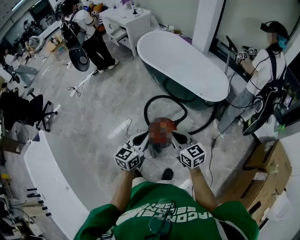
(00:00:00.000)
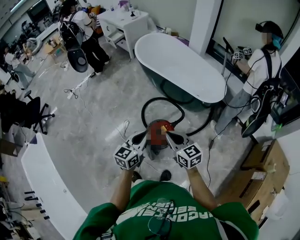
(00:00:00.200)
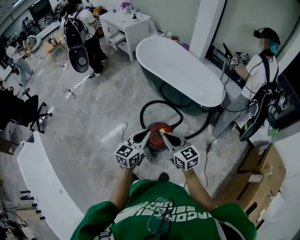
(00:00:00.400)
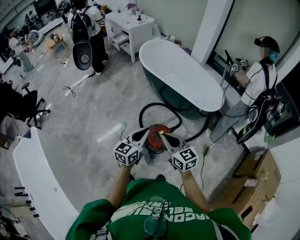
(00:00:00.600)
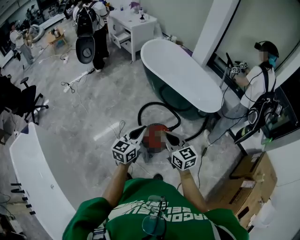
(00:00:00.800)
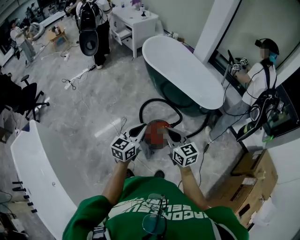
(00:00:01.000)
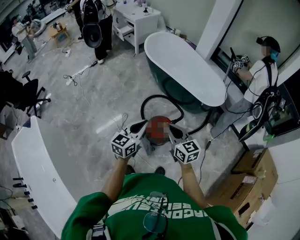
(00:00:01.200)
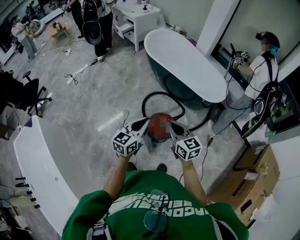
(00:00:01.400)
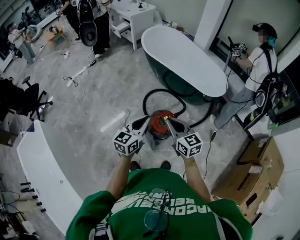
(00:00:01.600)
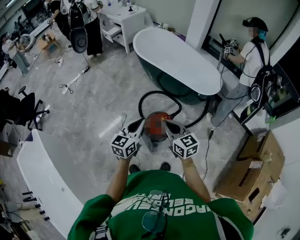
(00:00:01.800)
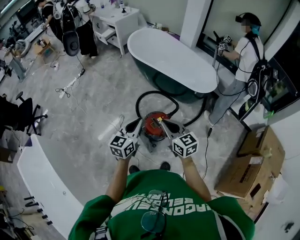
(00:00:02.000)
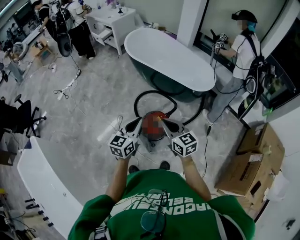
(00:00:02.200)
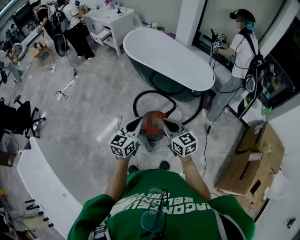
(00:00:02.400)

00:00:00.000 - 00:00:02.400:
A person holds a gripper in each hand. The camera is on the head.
00:00:00.000 - 00:00:01.200: The two grippers go some 10 cm to the left.
00:00:01.200 - 00:00:02.400: The grippers stay close to where they were, moving slightly.

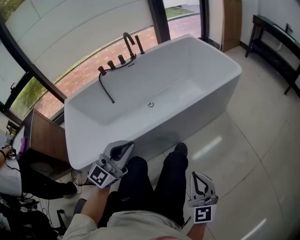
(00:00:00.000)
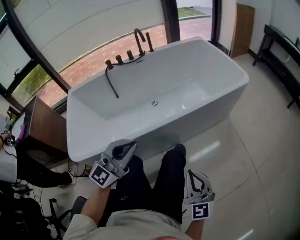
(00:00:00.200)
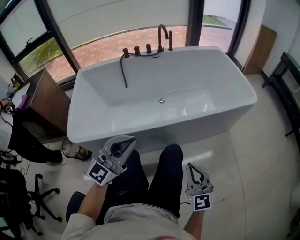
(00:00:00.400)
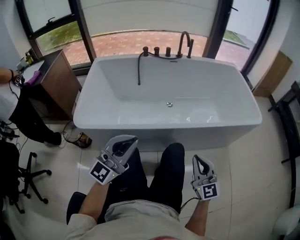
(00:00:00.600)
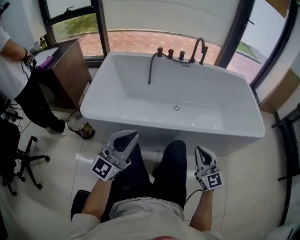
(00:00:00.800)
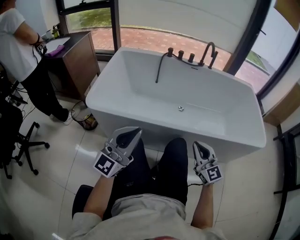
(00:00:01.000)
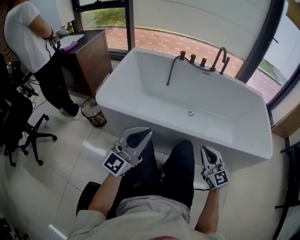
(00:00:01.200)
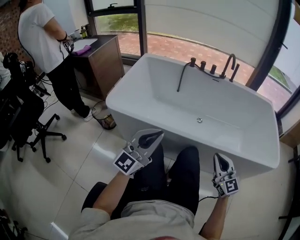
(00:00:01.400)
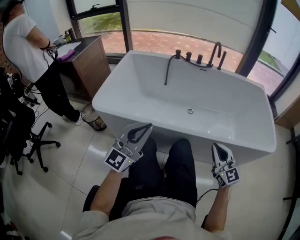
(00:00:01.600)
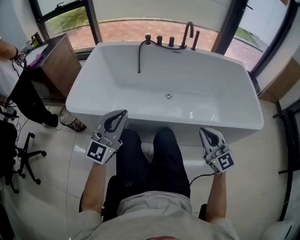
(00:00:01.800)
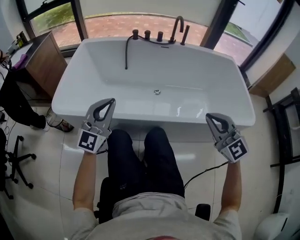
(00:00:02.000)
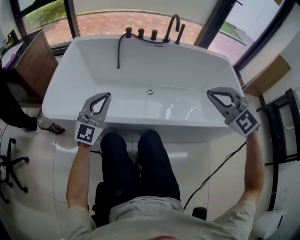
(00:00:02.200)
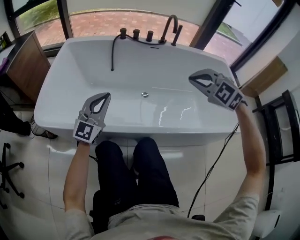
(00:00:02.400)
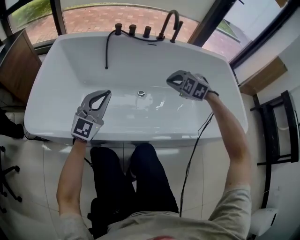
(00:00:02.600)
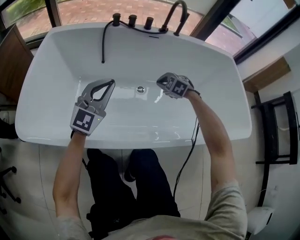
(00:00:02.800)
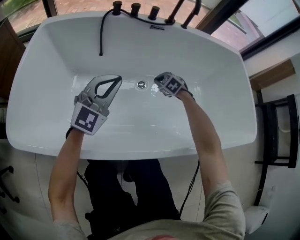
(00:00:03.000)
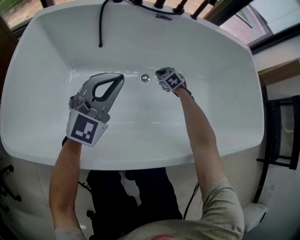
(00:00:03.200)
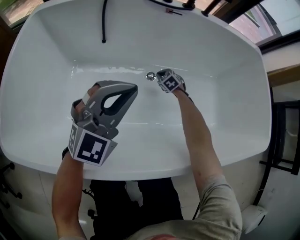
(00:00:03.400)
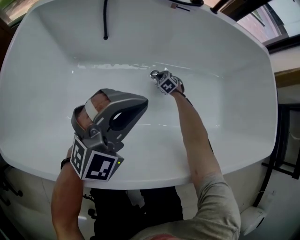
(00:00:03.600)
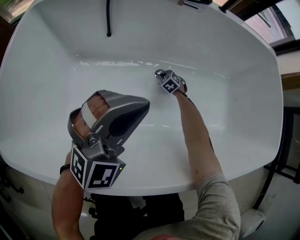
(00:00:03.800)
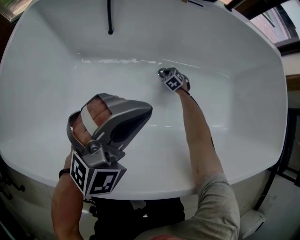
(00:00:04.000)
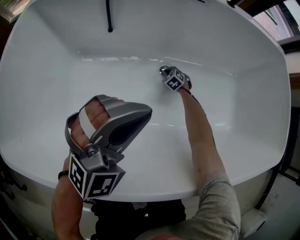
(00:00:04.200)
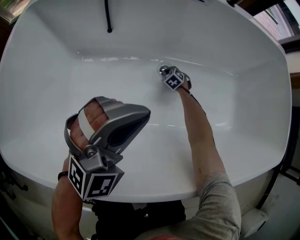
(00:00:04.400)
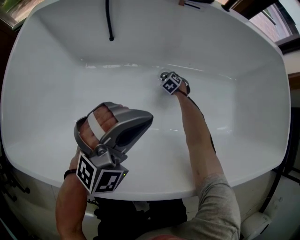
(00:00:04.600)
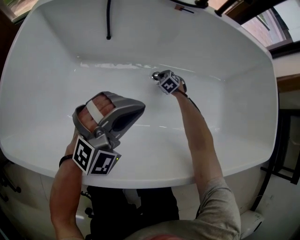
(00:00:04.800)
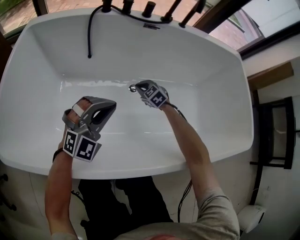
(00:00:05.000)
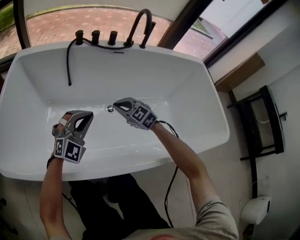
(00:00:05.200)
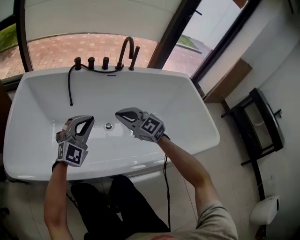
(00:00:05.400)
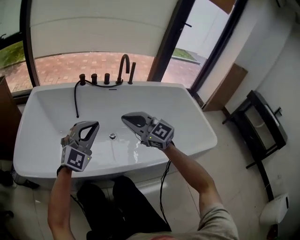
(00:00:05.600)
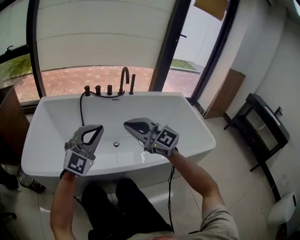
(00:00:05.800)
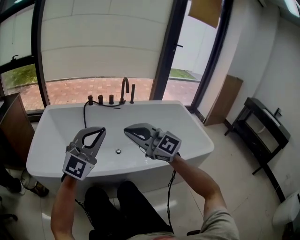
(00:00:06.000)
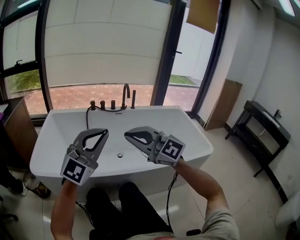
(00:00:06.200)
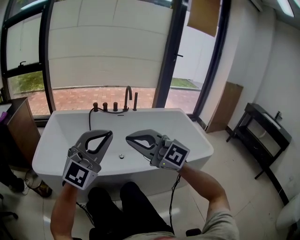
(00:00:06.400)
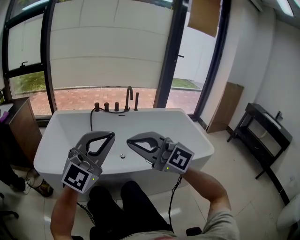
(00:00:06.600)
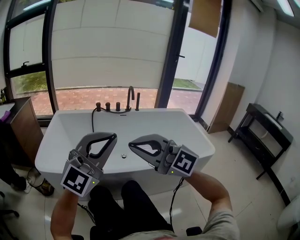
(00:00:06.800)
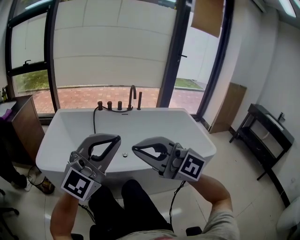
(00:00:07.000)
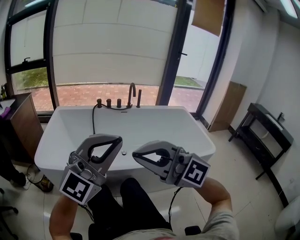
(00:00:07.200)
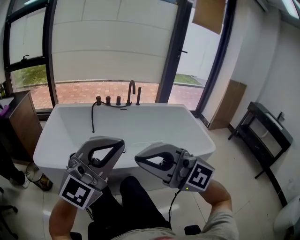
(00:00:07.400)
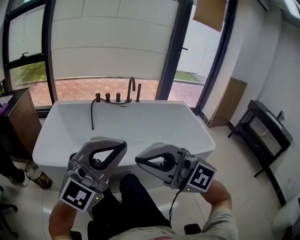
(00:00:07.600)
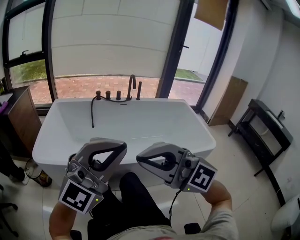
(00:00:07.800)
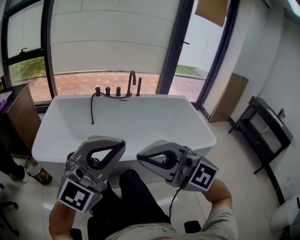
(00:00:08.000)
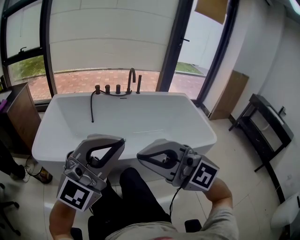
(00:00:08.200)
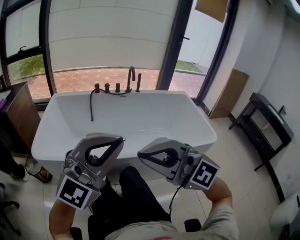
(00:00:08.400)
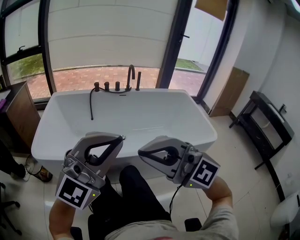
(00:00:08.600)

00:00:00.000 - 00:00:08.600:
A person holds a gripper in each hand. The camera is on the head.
00:00:00.000 - 00:00:01.400: The right gripper shifts by some 25 cm, and changes its angle by some 50 degrees, while the left gripper rotates about 40 degrees.
00:00:01.400 - 00:00:02.800: The left gripper heads forward, covering about 35 cm. Meanwhile the right gripper heads forward and downward, covering approximately 50 cm, and tips its fingers downward by about 60 degrees.
00:00:02.800 - 00:00:04.400: The left gripper travels downward and to the right by approximately 10 cm, and rotates some 30 degrees. Meanwhile the right gripper is displaced downward by roughly 40 cm.
00:00:04.400 - 00:00:05.800: The left gripper travels upward and backward by approximately 30 cm, and swivels roughly 20 degrees, while the right gripper is displaced upward and backward by some 80 cm, and tilts its fingers some 60 degrees upward.
00:00:05.800 - 00:00:07.200: The left gripper moves some 30 cm; the right gripper moves roughly 30 cm, and turns by roughly 30 degrees.
00:00:07.200 - 00:00:08.600: There are only small adjustments of the grippers.

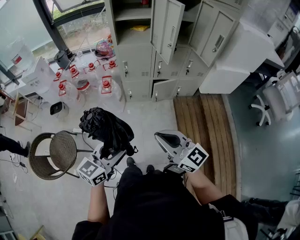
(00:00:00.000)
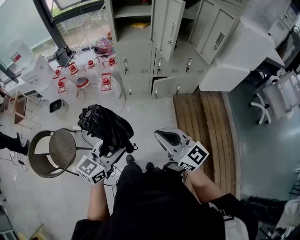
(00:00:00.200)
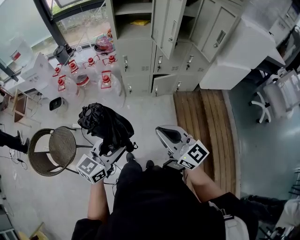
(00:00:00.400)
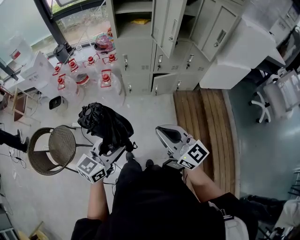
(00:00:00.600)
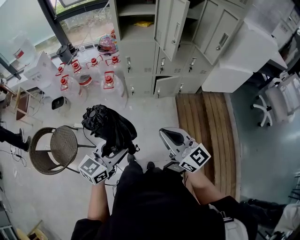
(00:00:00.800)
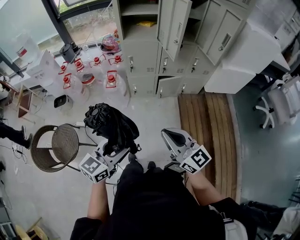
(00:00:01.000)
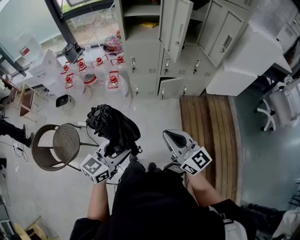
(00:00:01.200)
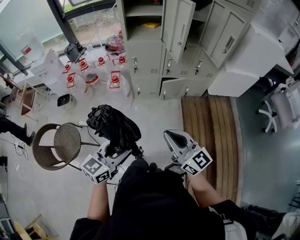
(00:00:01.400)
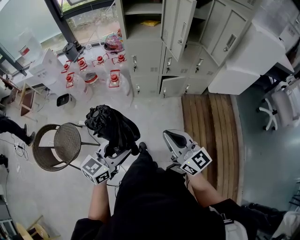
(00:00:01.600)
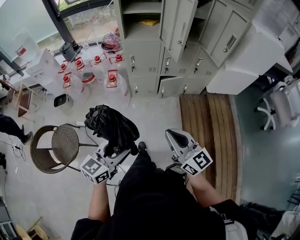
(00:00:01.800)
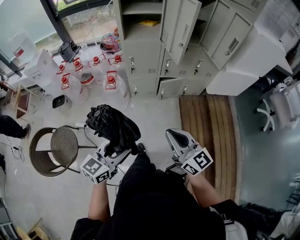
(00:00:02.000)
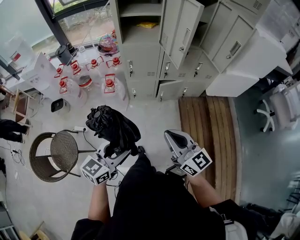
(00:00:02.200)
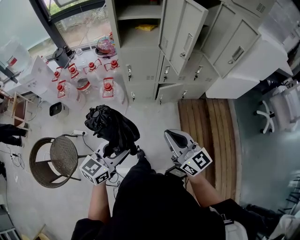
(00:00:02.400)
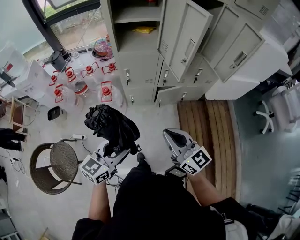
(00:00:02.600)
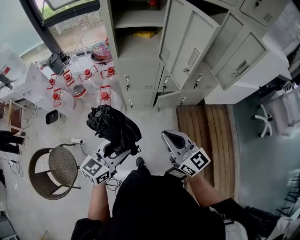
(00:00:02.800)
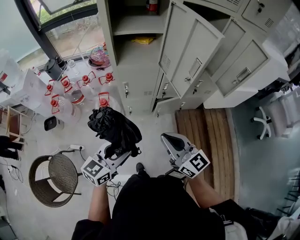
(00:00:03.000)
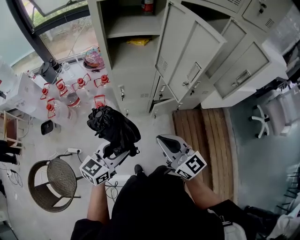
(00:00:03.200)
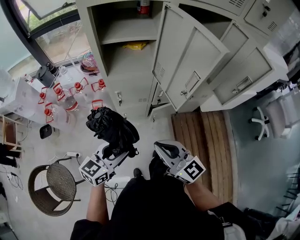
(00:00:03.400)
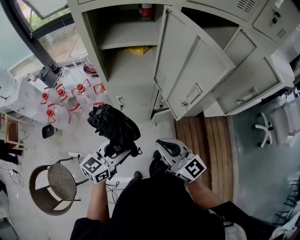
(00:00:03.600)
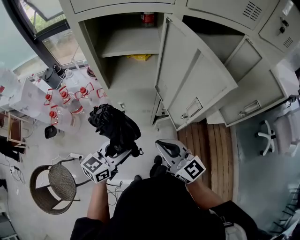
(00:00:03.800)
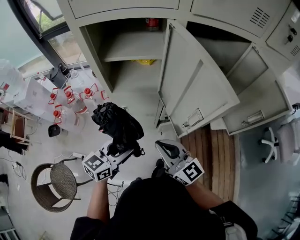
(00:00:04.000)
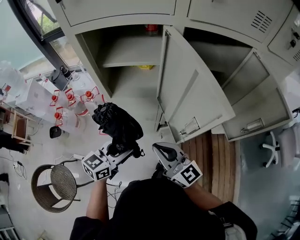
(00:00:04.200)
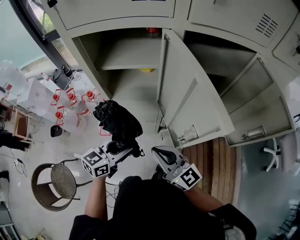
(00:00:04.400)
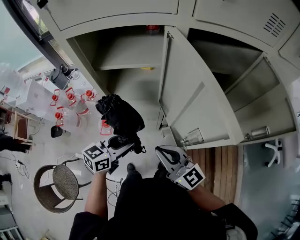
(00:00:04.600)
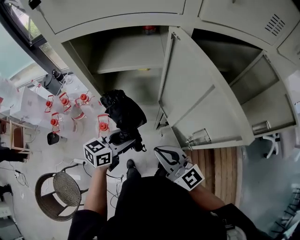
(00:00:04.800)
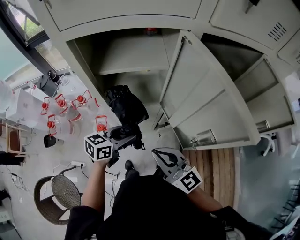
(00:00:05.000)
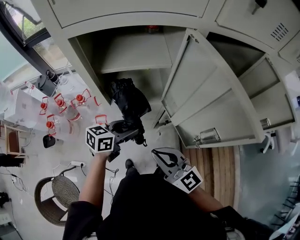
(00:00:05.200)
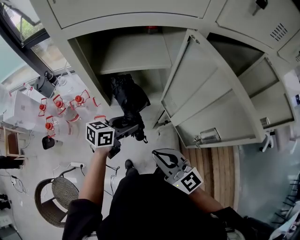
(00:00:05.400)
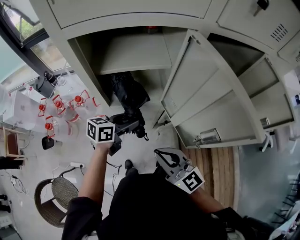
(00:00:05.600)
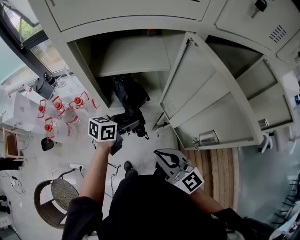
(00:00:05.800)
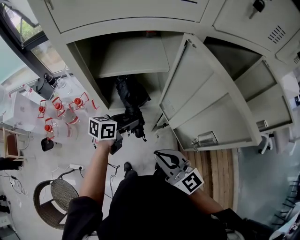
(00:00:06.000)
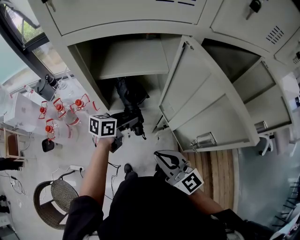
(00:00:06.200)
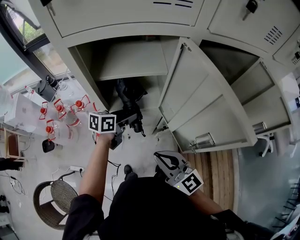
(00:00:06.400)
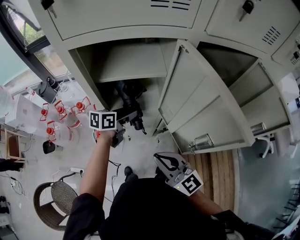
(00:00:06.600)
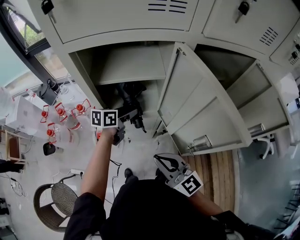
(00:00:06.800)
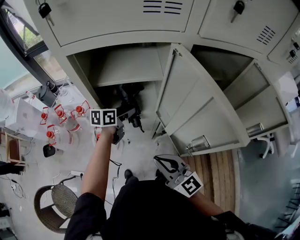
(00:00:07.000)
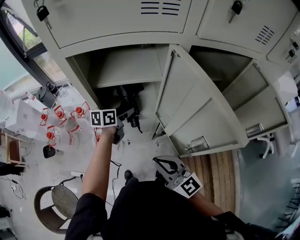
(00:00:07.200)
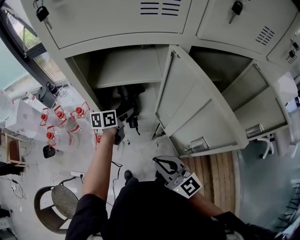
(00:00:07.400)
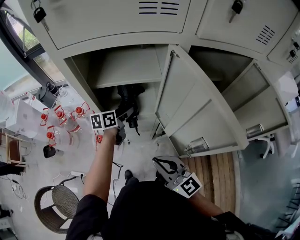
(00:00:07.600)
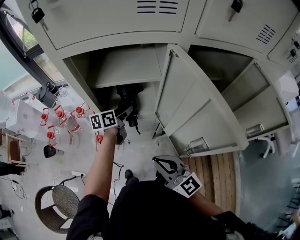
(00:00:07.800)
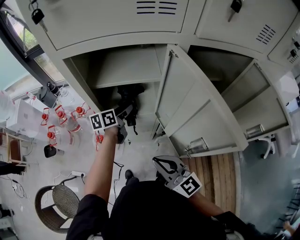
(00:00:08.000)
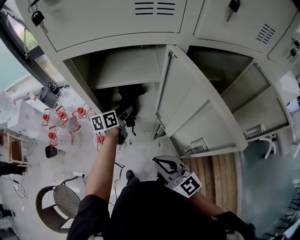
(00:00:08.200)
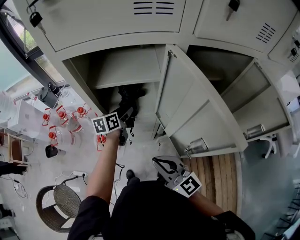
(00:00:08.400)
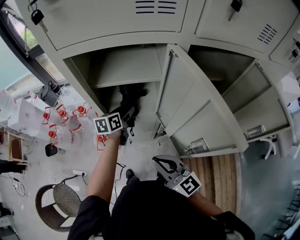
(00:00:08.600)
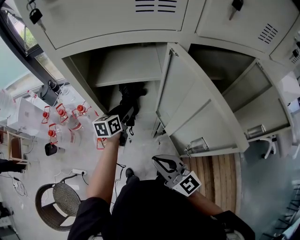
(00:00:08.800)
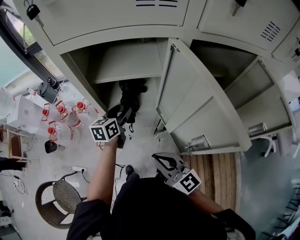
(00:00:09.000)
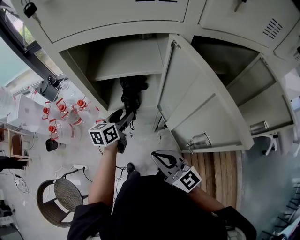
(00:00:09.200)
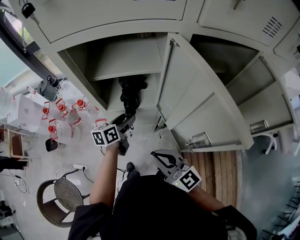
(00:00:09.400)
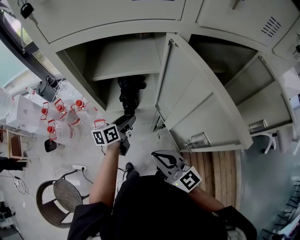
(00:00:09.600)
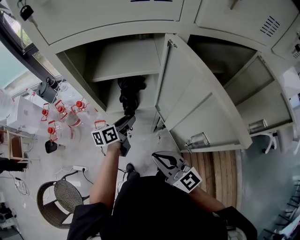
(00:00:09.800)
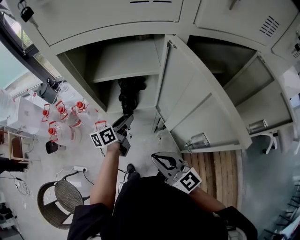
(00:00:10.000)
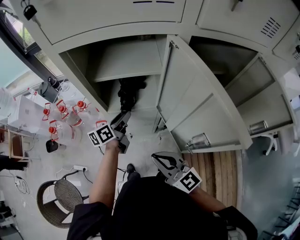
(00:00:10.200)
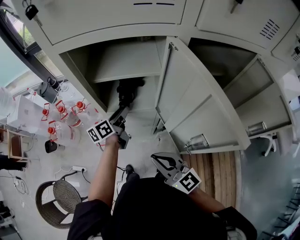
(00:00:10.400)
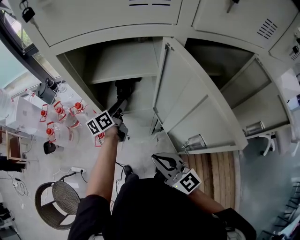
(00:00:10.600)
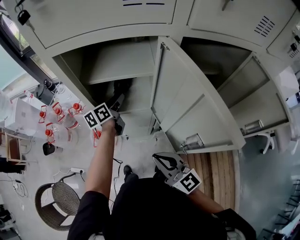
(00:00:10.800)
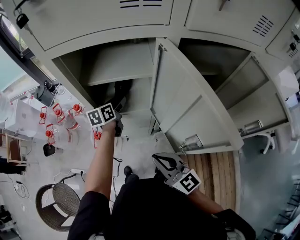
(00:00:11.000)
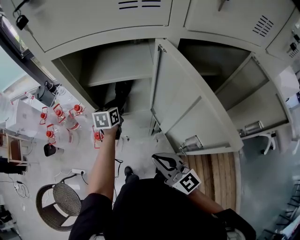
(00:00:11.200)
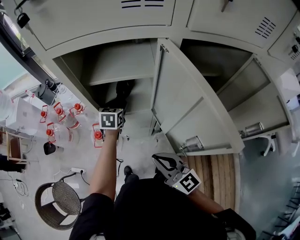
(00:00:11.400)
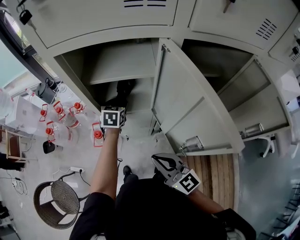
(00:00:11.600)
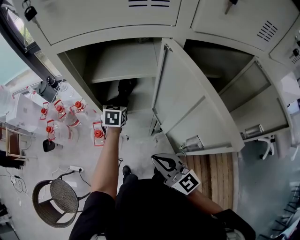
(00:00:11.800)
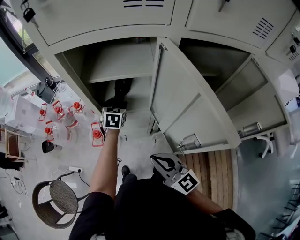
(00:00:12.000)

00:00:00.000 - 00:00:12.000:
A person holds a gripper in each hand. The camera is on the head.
00:00:00.000 - 00:00:01.600: The grippers stay close to where they were, moving slightly.
00:00:01.600 - 00:00:03.000: Both grippers move forward, some 25 cm.
00:00:03.000 - 00:00:04.400: The grippers both shift forward by some 20 cm.
00:00:04.400 - 00:00:06.000: The right gripper moves to the left, about 5 cm; the left gripper travels forward by approximately 15 cm, and turns by about 20 degrees.
00:00:06.000 - 00:00:07.600: The left gripper travels forward by approximately 10 cm.
00:00:07.600 - 00:00:09.000: The grippers make only small movements.
00:00:09.000 - 00:00:10.400: The left gripper changes its angle by about 30 degrees.
00:00:10.400 - 00:00:12.000: The left gripper shifts some 5 cm forward, and twists some 50 degrees clockwise, seen from behind.
